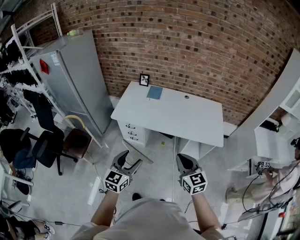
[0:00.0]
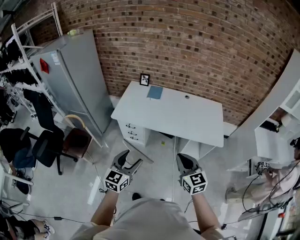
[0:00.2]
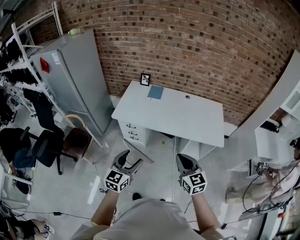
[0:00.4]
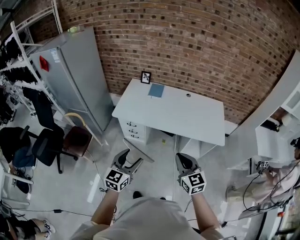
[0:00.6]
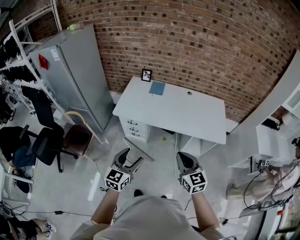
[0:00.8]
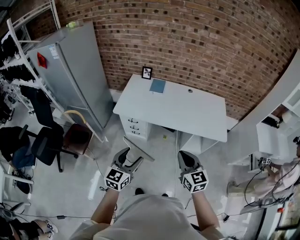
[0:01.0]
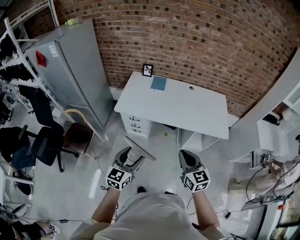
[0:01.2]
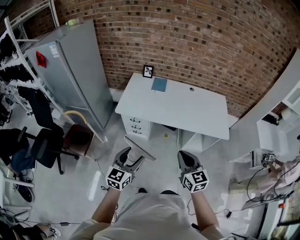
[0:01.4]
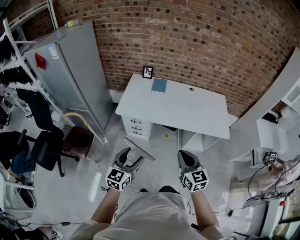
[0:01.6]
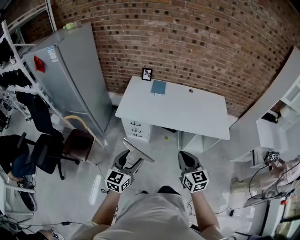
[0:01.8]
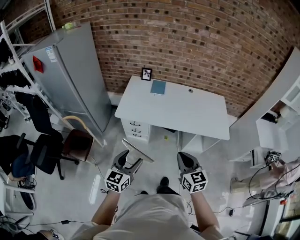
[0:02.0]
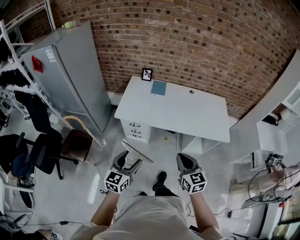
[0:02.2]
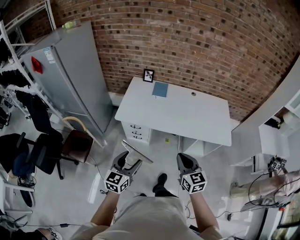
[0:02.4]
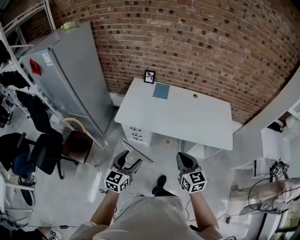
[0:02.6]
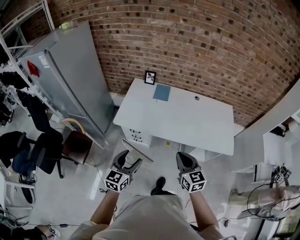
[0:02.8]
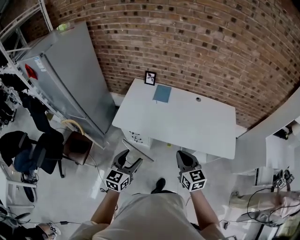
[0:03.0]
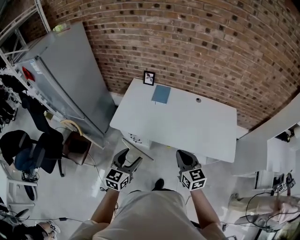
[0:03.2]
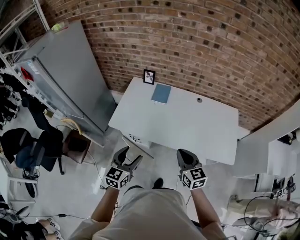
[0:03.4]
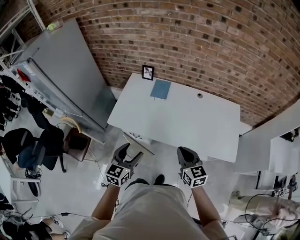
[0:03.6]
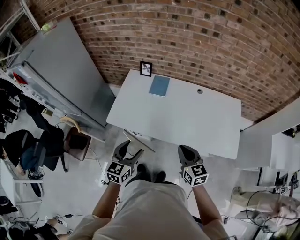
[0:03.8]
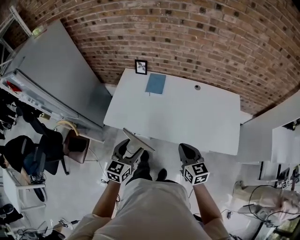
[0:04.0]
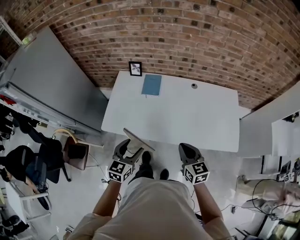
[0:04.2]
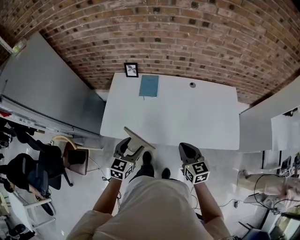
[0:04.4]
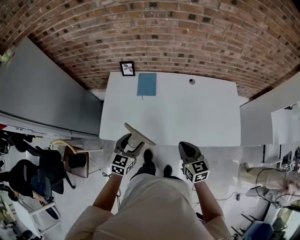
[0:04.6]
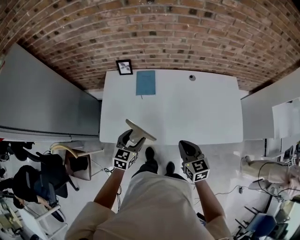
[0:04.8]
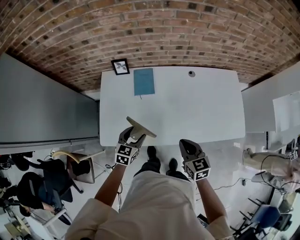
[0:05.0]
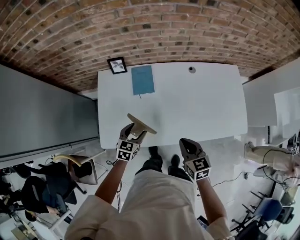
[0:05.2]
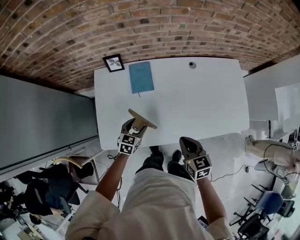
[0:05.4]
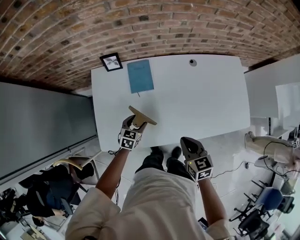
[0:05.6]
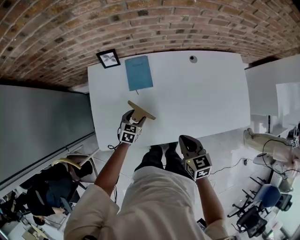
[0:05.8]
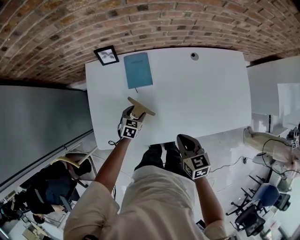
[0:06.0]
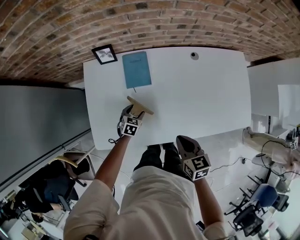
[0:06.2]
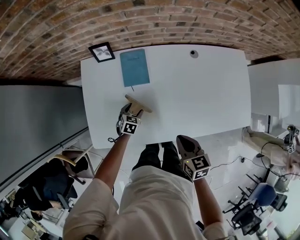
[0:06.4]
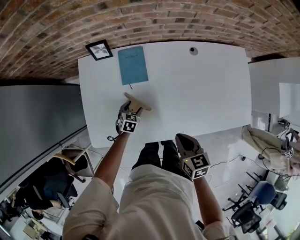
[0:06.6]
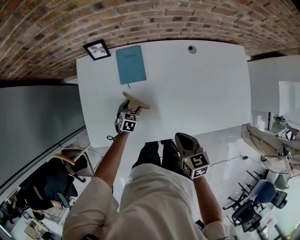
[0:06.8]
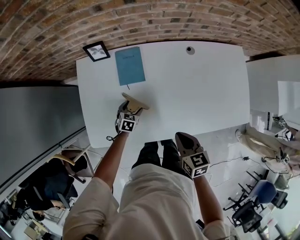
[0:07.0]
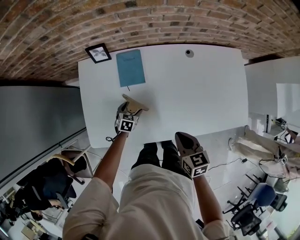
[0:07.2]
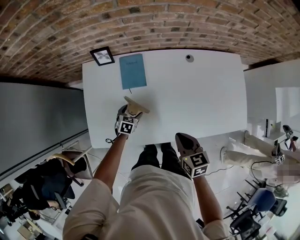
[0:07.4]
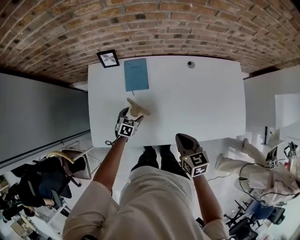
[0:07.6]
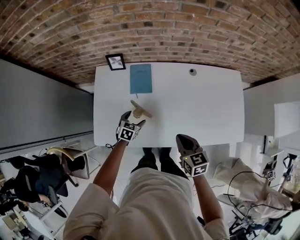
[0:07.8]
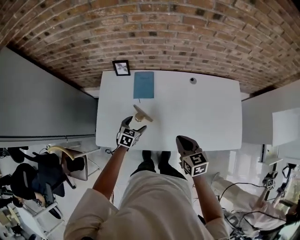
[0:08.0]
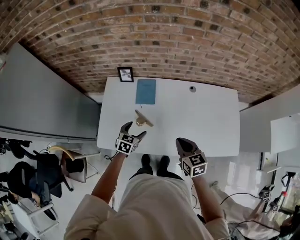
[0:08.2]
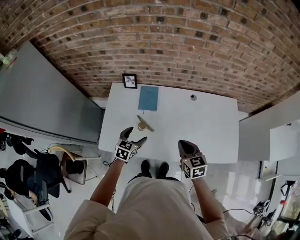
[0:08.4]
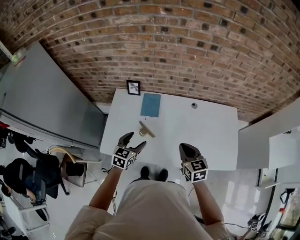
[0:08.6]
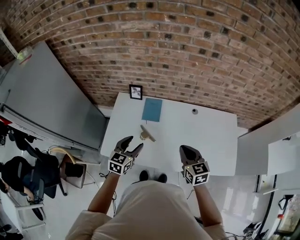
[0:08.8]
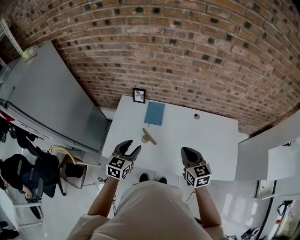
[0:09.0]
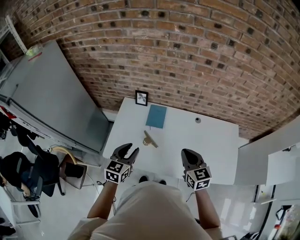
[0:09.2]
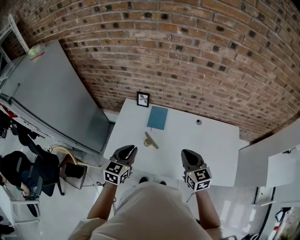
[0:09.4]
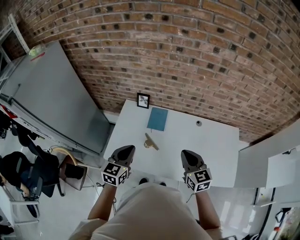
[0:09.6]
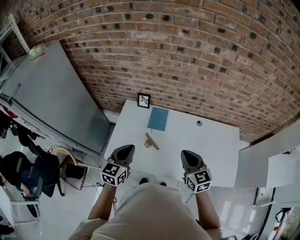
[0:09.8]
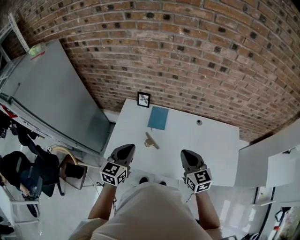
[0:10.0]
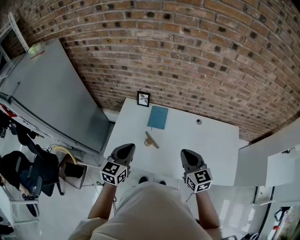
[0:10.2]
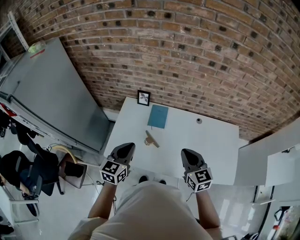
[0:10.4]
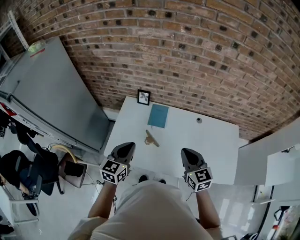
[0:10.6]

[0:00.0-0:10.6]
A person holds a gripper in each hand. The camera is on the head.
0:00.0 to 0:01.6: The grippers both shift to the left by some 10 cm.
0:01.6 to 0:03.0: The grippers both shift forward by some 20 cm.
0:03.0 to 0:04.6: The right gripper heads forward and downward, covering some 20 cm. The left gripper is displaced forward by about 25 cm.
0:04.6 to 0:06.0: The right gripper heads downward, forward and to the left, covering about 15 cm. The left gripper is displaced downward and forward by approximately 35 cm, and swivels roughly 20 degrees.
0:06.0 to 0:07.6: The grippers make only small movements.
0:07.6 to 0:09.0: The right gripper shifts about 15 cm upward, and rotates approximately 20 degrees. Meanwhile the left gripper shifts some 35 cm upward, changes its angle by about 30 degrees, and closes its fingers.
0:09.0 to 0:10.6: The right gripper shifts by some 5 cm. The left gripper is displaced upward by roughly 5 cm, and closes its fingers.

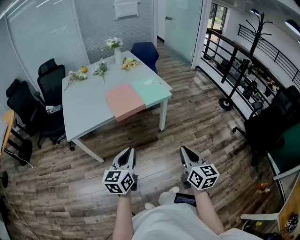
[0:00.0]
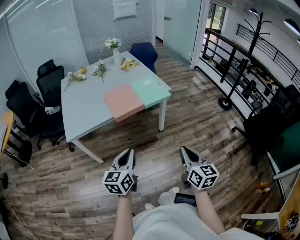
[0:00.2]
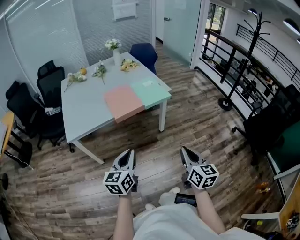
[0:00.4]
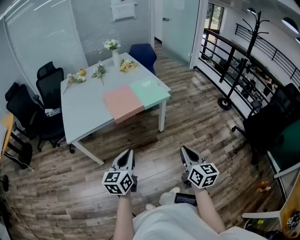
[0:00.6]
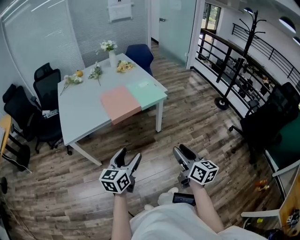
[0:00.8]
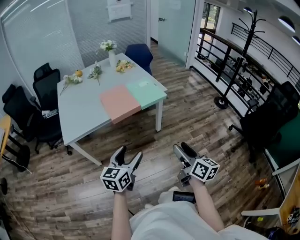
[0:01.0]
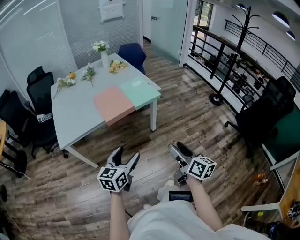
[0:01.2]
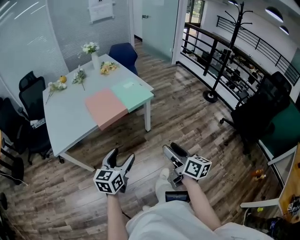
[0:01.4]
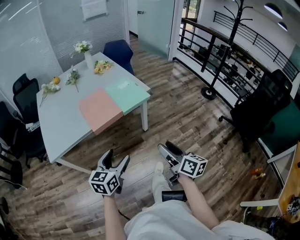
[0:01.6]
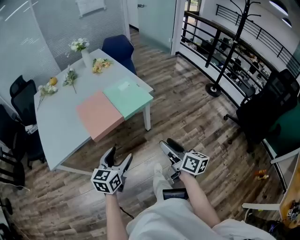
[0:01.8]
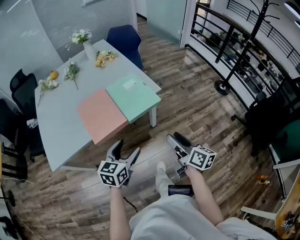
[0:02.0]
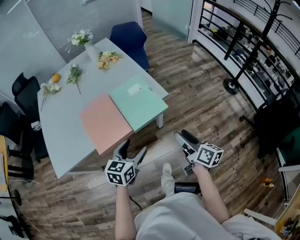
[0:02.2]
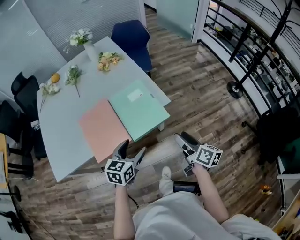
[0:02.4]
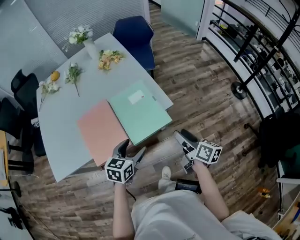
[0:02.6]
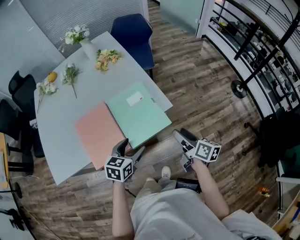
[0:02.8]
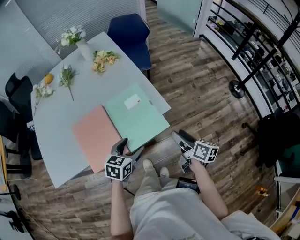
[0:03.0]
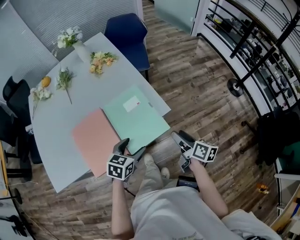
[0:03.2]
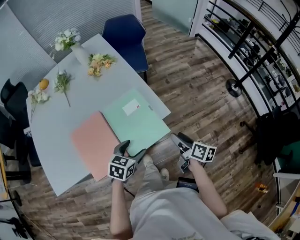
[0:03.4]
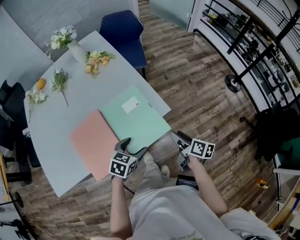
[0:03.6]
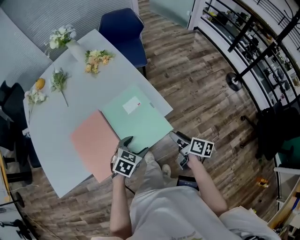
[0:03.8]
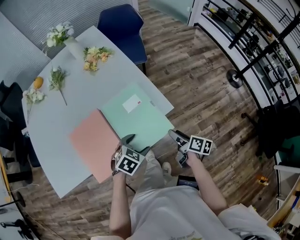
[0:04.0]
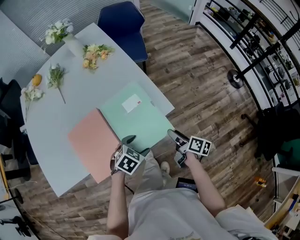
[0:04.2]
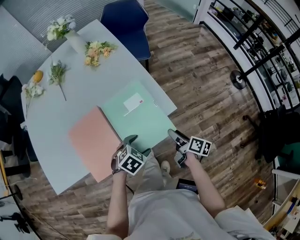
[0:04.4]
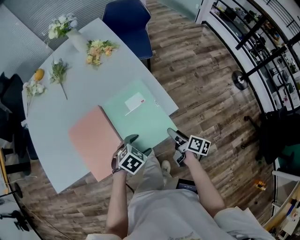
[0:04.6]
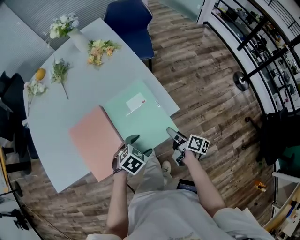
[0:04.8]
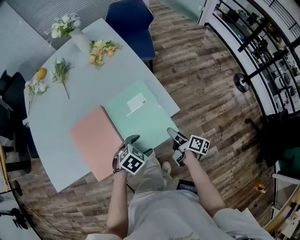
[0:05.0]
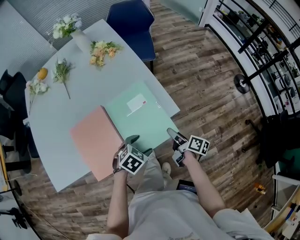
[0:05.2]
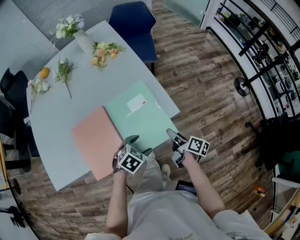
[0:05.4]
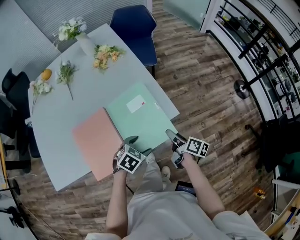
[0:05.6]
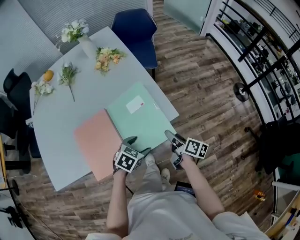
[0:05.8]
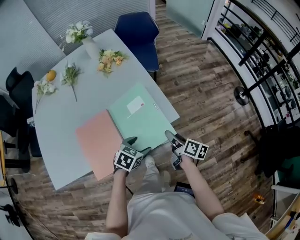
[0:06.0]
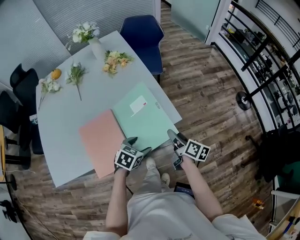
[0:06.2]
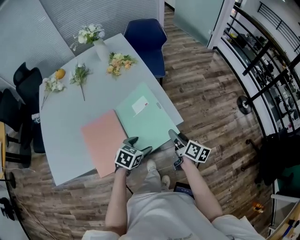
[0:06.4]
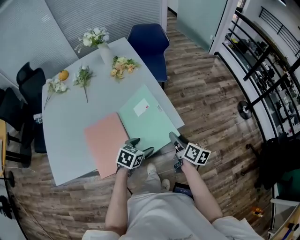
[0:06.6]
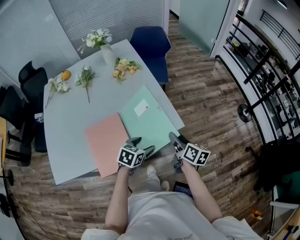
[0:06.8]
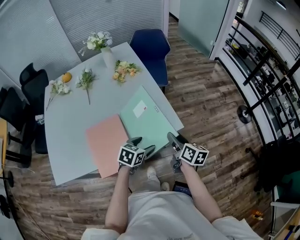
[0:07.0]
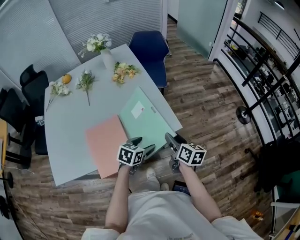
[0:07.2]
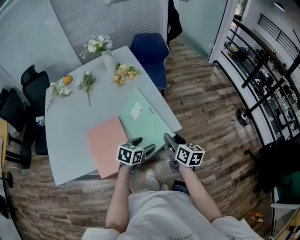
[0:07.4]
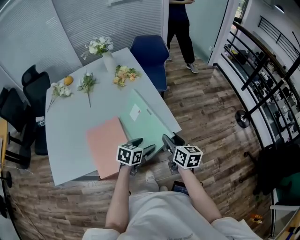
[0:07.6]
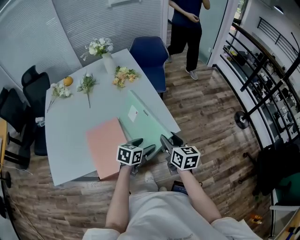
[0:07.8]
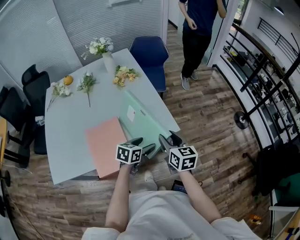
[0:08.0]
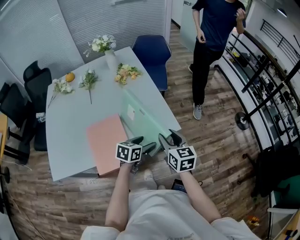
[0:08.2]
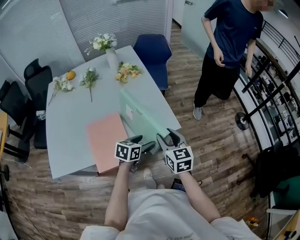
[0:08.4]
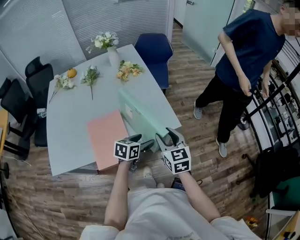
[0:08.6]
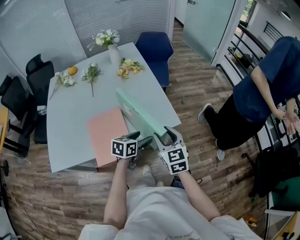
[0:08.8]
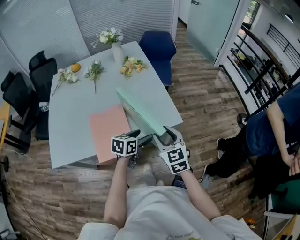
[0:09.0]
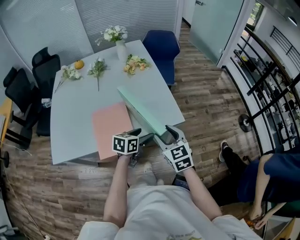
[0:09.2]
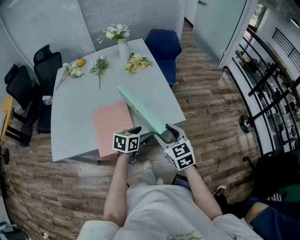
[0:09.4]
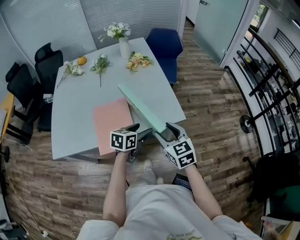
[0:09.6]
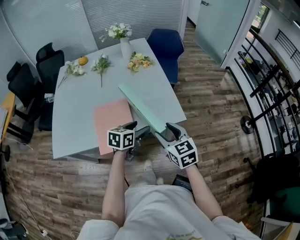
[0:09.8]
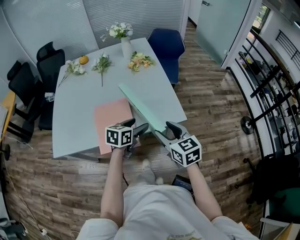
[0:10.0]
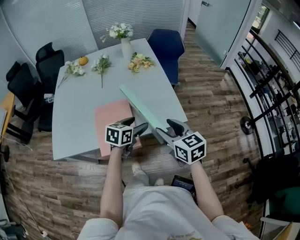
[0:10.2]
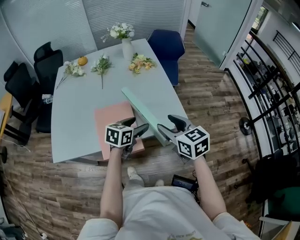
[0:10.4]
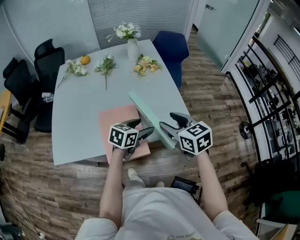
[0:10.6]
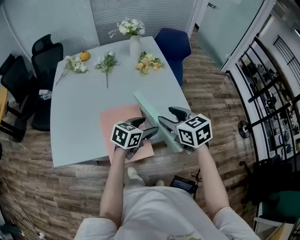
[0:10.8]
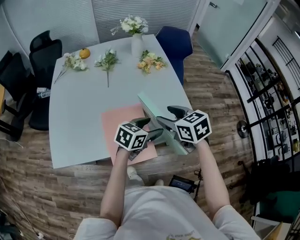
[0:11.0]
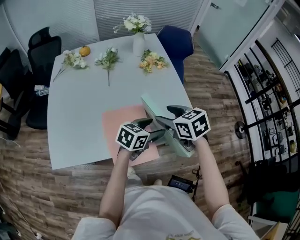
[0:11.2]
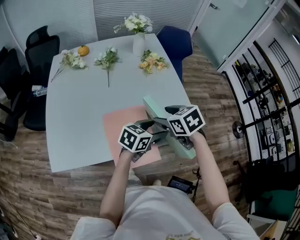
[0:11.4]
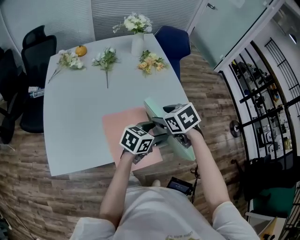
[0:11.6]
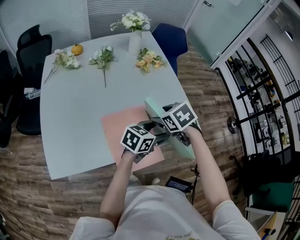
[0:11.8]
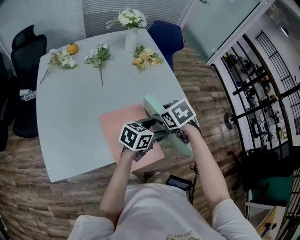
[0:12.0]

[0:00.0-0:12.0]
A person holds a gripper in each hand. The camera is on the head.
0:00.0 to 0:01.6: Both grippers travel together forward, roughly 10 cm. The right gripper swivels about 30 degrees, and opens; the left gripper opens.
0:01.6 to 0:03.0: The pair of grippers is taken forward, about 40 cm. The left gripper rotates roughly 20 degrees.
0:03.0 to 0:04.4: The two grippers go approximately 10 cm downward. The left gripper turns by approximately 40 degrees.
0:04.4 to 0:06.0: The right gripper goes about 5 cm upward.
0:06.0 to 0:07.6: The right gripper travels upward by some 10 cm, and rotates about 30 degrees. Meanwhile the left gripper shifts approximately 5 cm upward, and turns by some 20 degrees.
0:07.6 to 0:09.0: The right gripper shifts some 5 cm backward, and swivels some 40 degrees.
0:09.0 to 0:10.4: The right gripper shifts roughly 5 cm upward, while the left gripper heads to the left, covering some 5 cm.
0:10.4 to 0:12.0: The right gripper travels to the left, forward and downward by approximately 25 cm, and points its fingers some 40 degrees further downward. The left gripper shifts by roughly 5 cm, and swivels approximately 30 degrees.

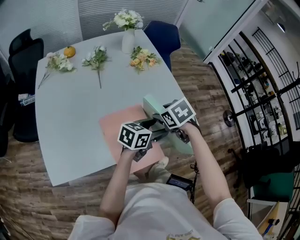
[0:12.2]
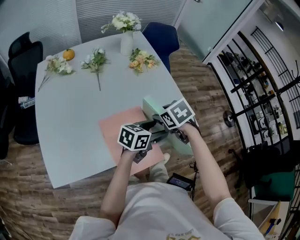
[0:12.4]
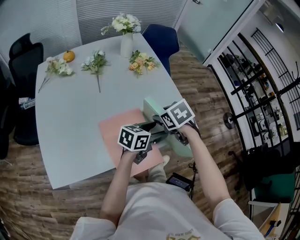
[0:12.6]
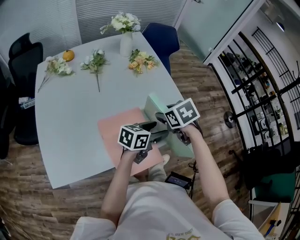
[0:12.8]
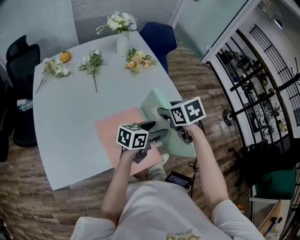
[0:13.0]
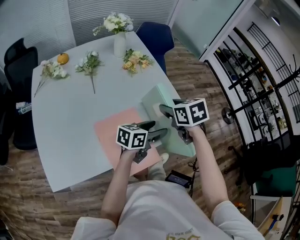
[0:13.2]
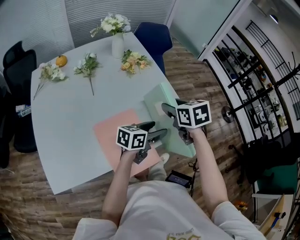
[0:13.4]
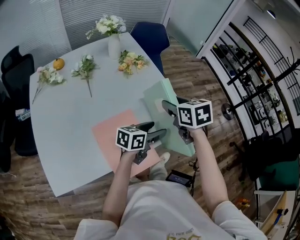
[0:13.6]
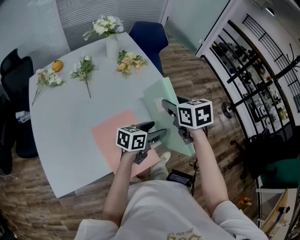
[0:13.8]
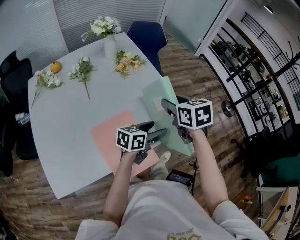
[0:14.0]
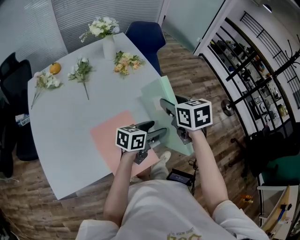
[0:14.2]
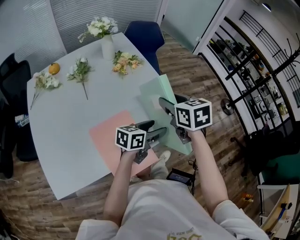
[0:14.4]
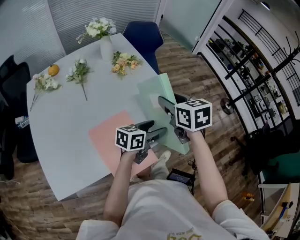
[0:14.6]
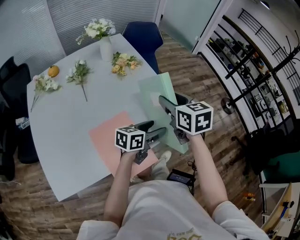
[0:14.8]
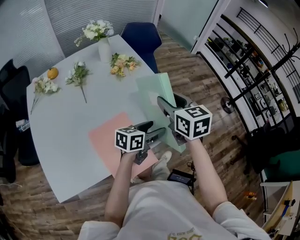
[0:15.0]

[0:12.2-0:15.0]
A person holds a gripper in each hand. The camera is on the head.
0:12.2 to 0:13.6: The right gripper goes some 10 cm upward, to the right and forward, and turns by about 30 degrees.
0:13.6 to 0:15.0: The grippers make only small movements.
